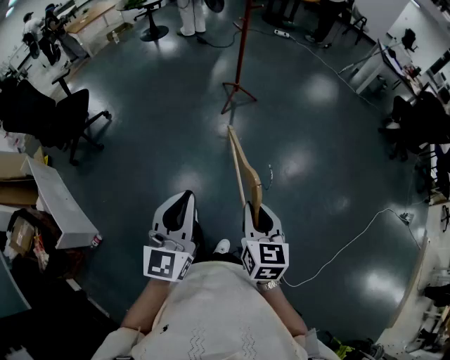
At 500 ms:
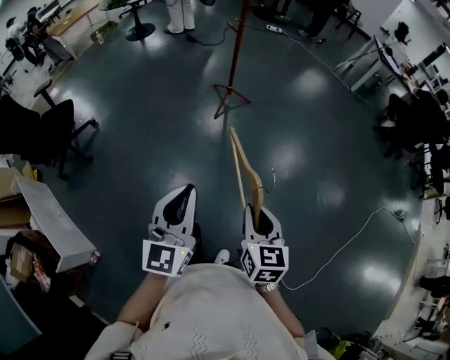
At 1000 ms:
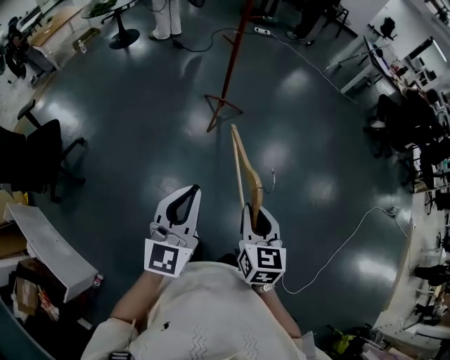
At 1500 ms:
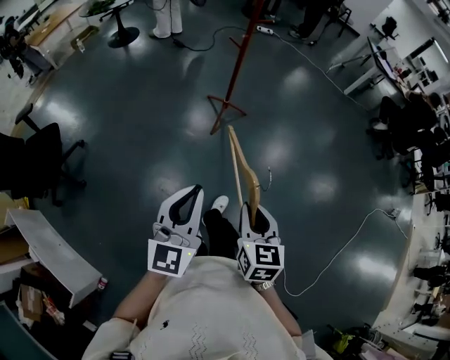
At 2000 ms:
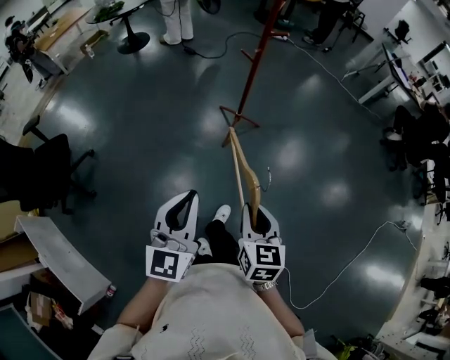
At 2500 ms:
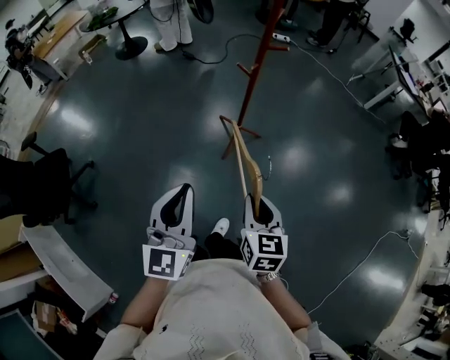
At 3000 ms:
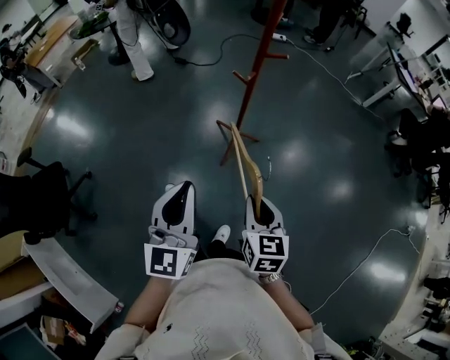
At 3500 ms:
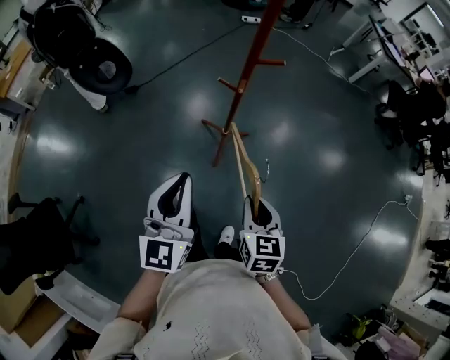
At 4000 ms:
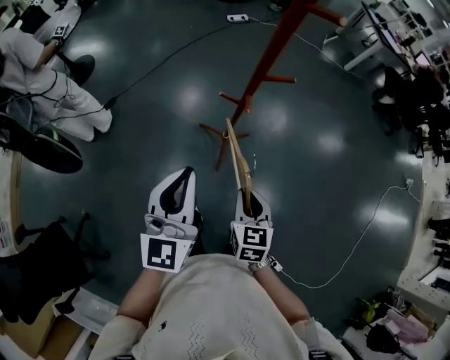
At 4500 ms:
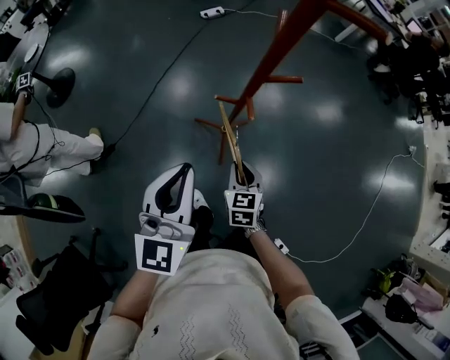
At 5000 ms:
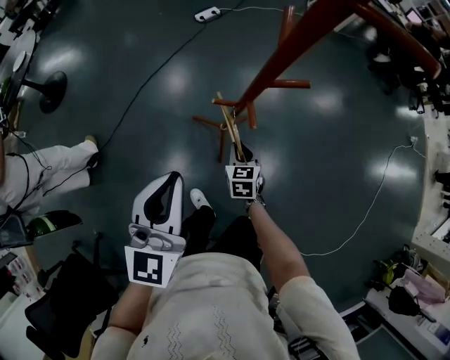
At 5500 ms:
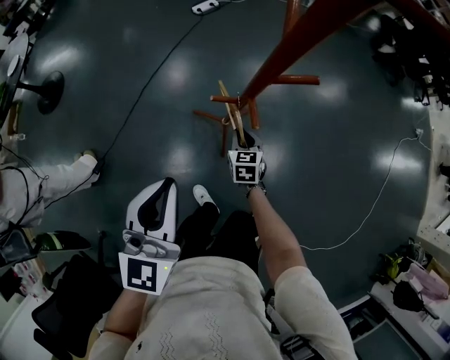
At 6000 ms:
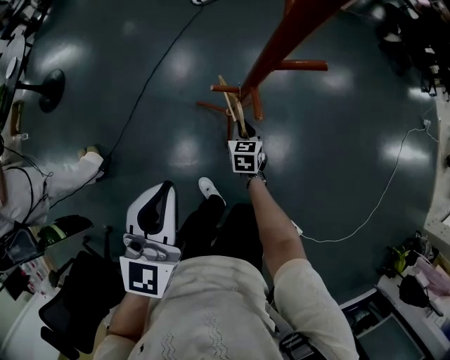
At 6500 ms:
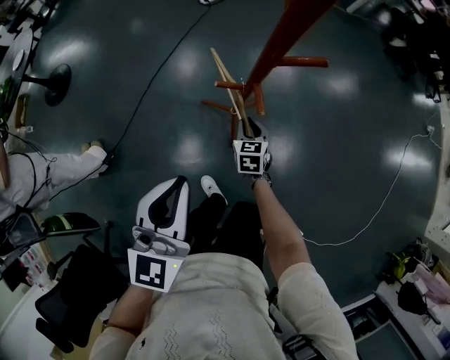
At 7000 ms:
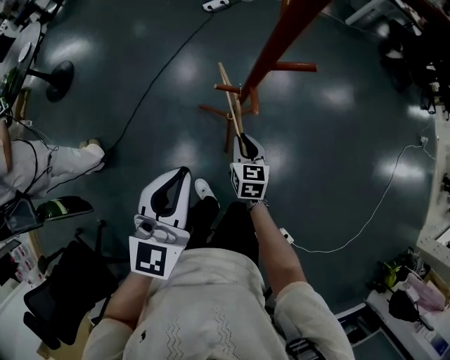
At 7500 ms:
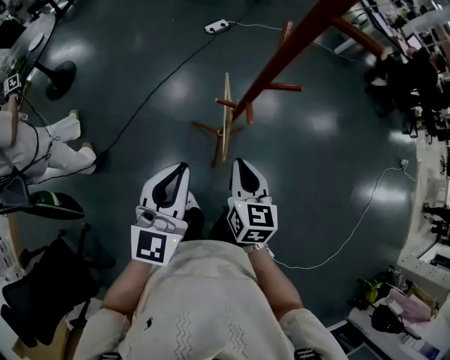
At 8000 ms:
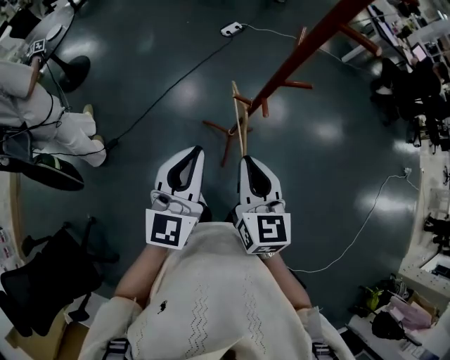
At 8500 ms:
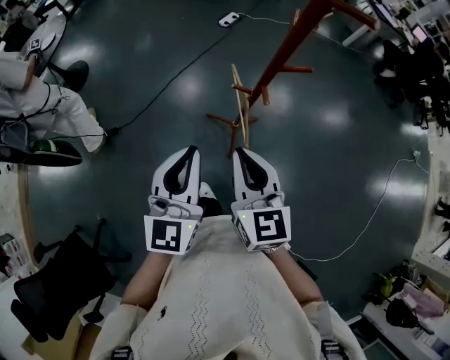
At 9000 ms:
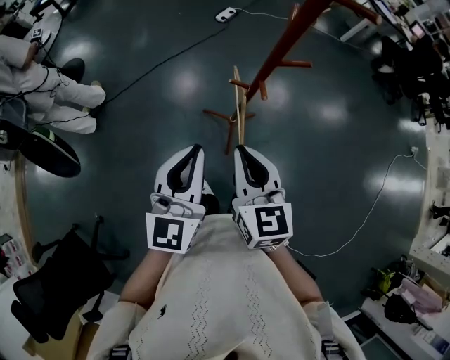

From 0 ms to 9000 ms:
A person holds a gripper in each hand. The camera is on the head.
From 0 ms to 2000 ms: Both grippers are carried forward and to the left, roughly 50 cm.
From 2000 ms to 4500 ms: The two grippers travel together, approximately 60 cm. The right gripper changes its angle by some 20 degrees; the left gripper changes its angle by about 20 degrees.
From 4500 ms to 7000 ms: The left gripper heads downward, covering approximately 5 cm. The right gripper shifts about 10 cm forward and downward.
From 7000 ms to 9000 ms: The right gripper is displaced upward and backward by roughly 30 cm, while the left gripper travels upward and backward by some 10 cm.

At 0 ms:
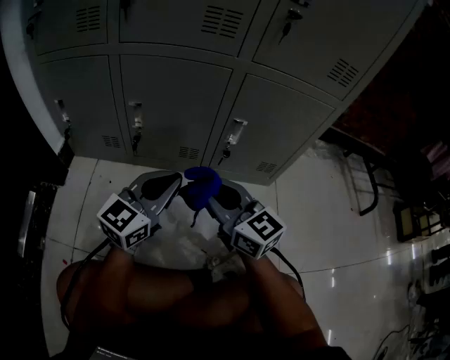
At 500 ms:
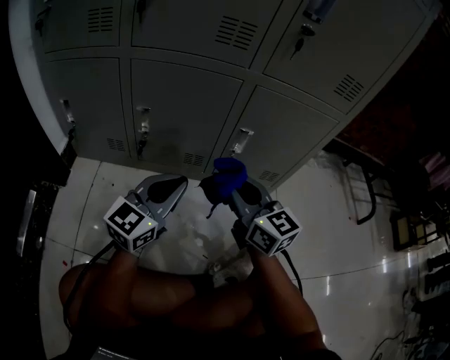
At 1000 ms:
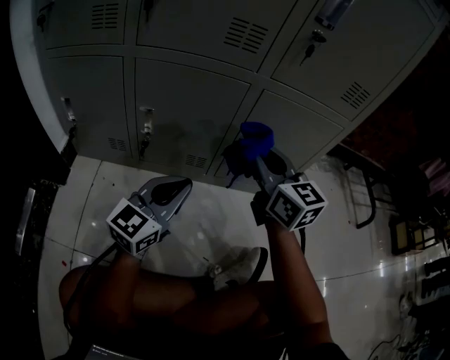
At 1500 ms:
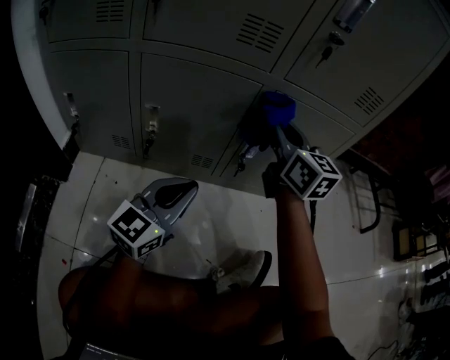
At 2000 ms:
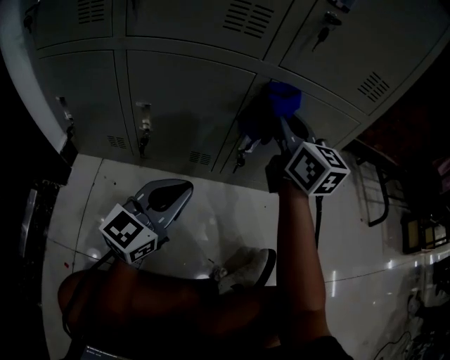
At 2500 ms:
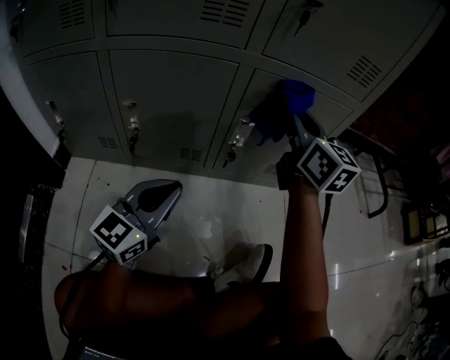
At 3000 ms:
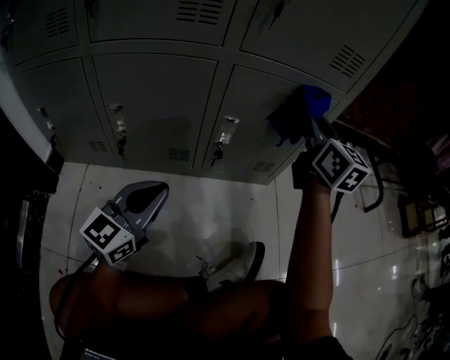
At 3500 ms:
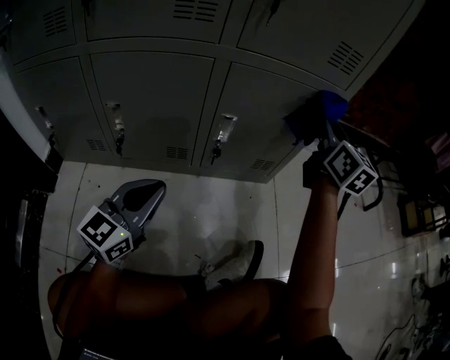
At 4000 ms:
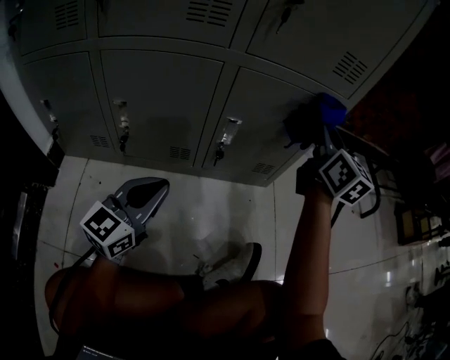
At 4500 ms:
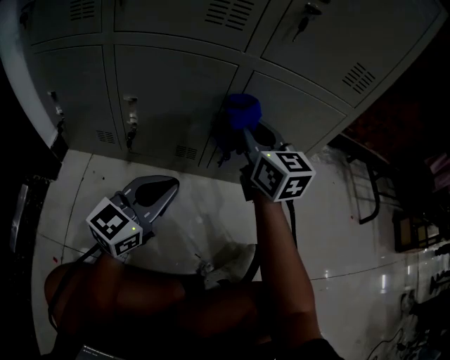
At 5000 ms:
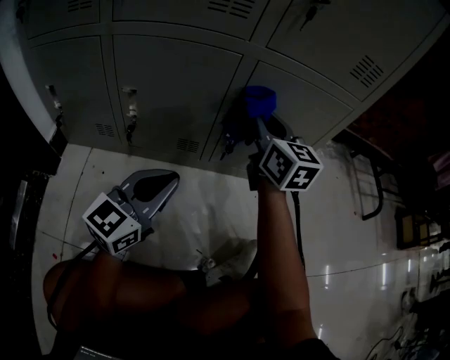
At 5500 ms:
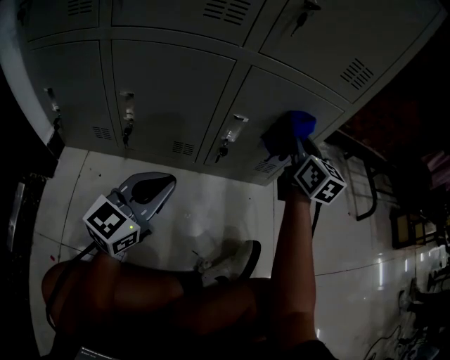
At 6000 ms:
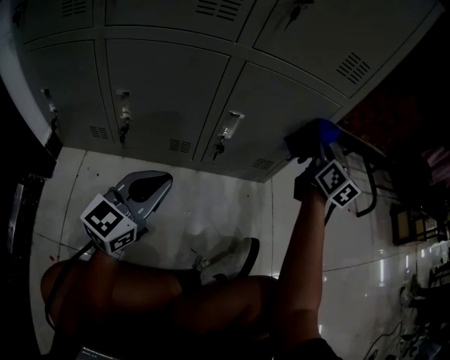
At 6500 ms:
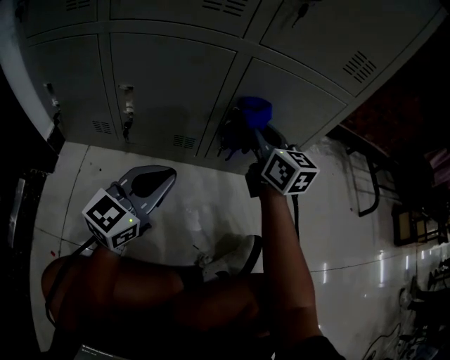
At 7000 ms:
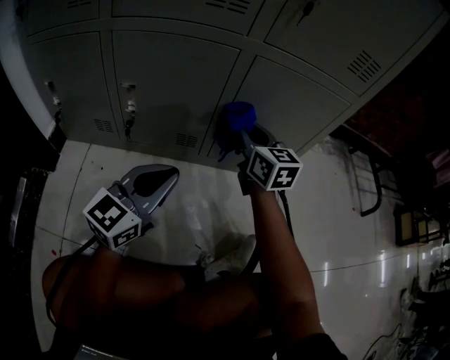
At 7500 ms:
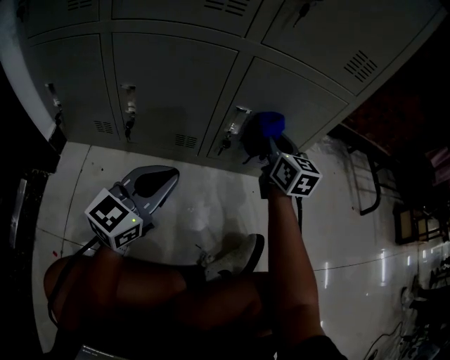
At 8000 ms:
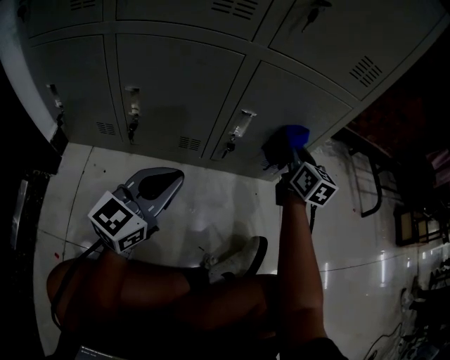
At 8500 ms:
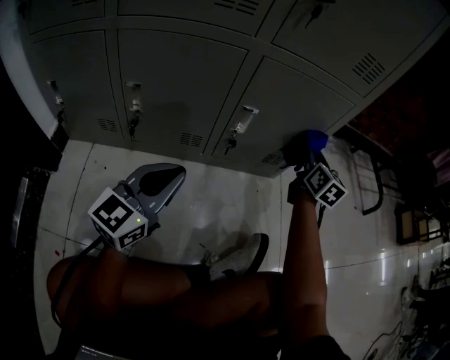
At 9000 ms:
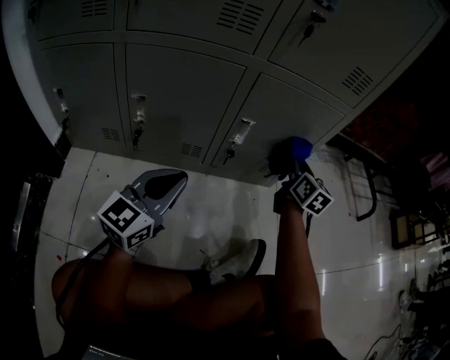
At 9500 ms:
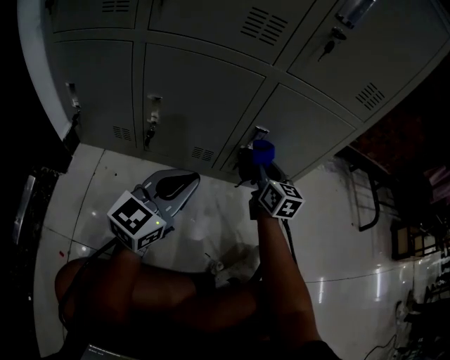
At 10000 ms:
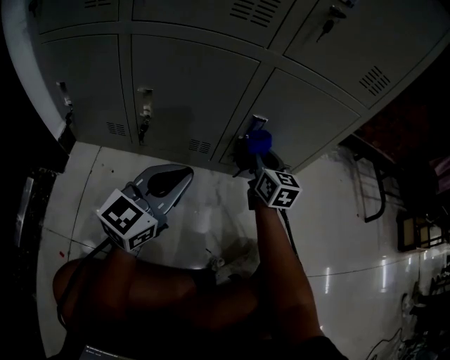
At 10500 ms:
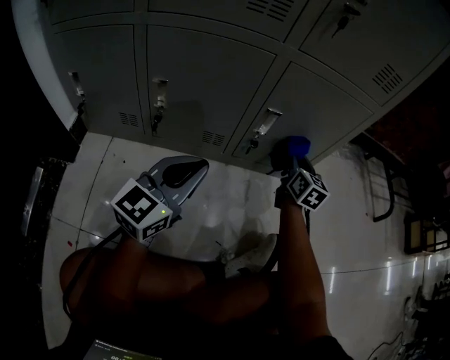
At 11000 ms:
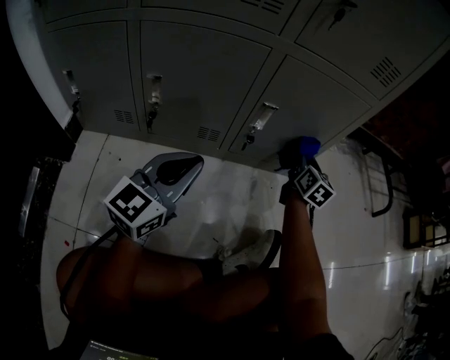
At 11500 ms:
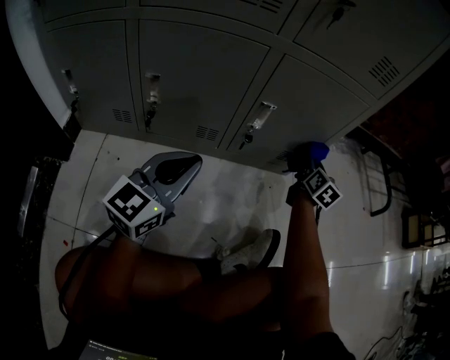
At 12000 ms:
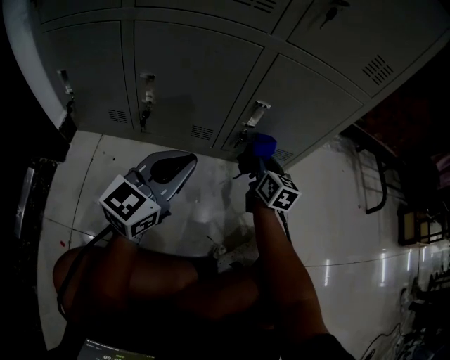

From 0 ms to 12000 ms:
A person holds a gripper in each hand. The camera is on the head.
From 0 ms to 2000 ms: The right gripper shifts some 25 cm forward, upward and to the right, and rotates approximately 20 degrees.
From 2000 ms to 4000 ms: The right gripper moves to the right, some 15 cm.
From 4000 ms to 6000 ms: The right gripper goes approximately 10 cm downward, and travels to the left and back again, some 20 cm each way.
From 6000 ms to 8000 ms: The right gripper heads downward, covering about 5 cm, and moves approximately 25 cm to the left and comes back.
From 8000 ms to 10000 ms: The right gripper goes some 15 cm to the left and downward.
From 10000 ms to 12000 ms: The right gripper travels downward by approximately 5 cm, and reaches approximately 20 cm to the right, then returns.

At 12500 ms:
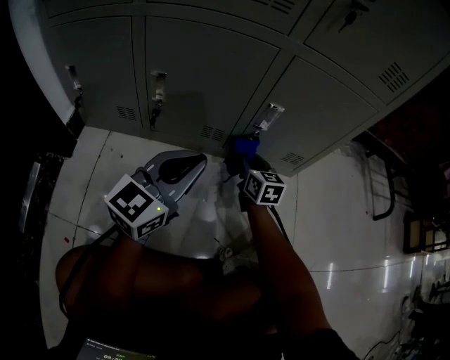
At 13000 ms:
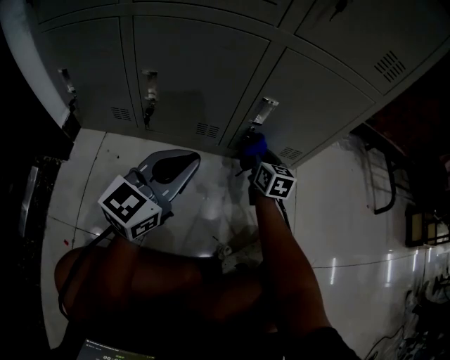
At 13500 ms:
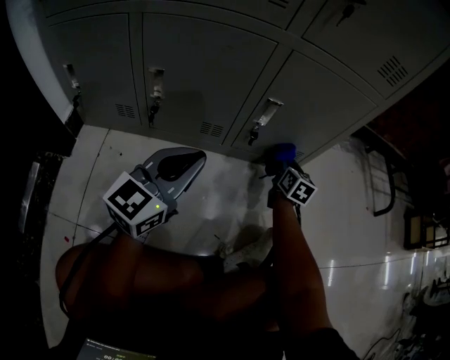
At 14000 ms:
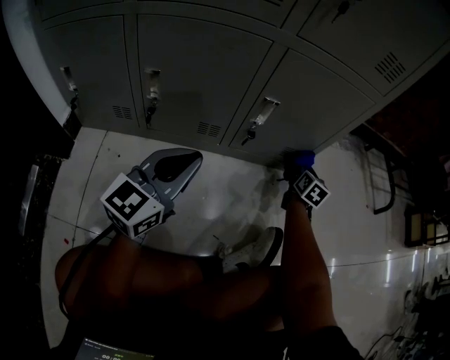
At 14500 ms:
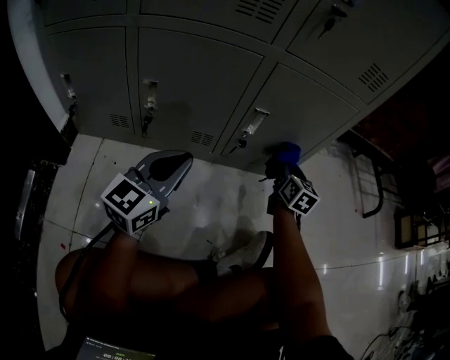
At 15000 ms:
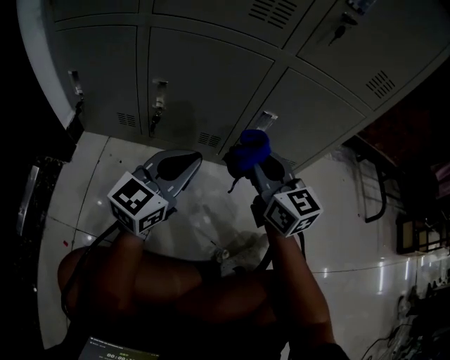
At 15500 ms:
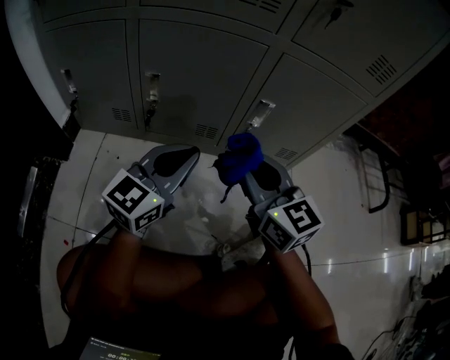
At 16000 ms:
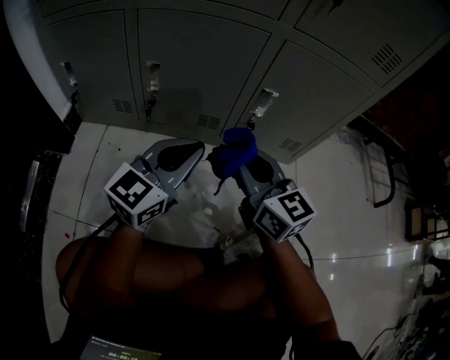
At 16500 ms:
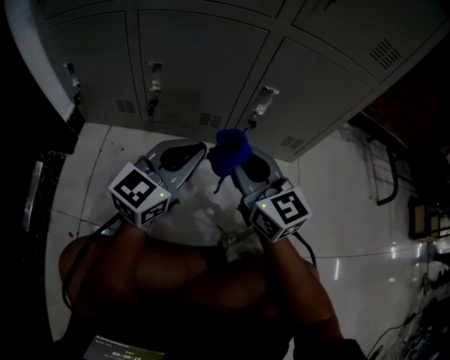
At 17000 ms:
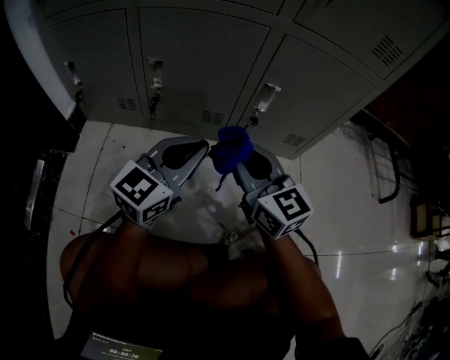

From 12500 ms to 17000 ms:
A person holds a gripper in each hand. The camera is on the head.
From 12500 ms to 14500 ms: The right gripper heads to the right and upward, covering some 20 cm, and swivels some 20 degrees.
From 14500 ms to 17000 ms: The right gripper goes some 30 cm to the left, backward and upward, and swivels about 40 degrees.

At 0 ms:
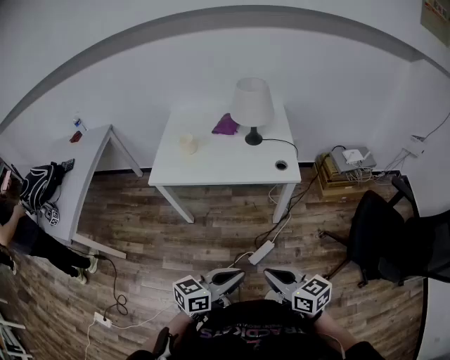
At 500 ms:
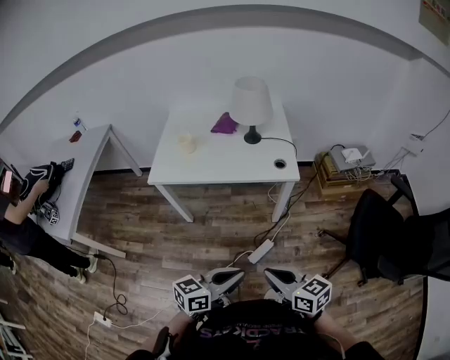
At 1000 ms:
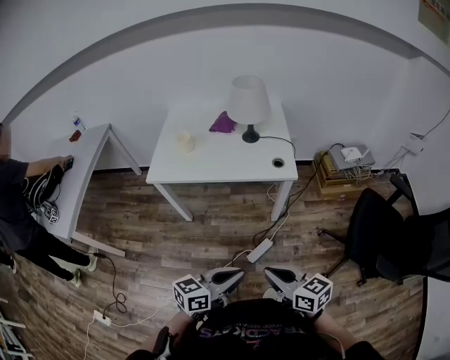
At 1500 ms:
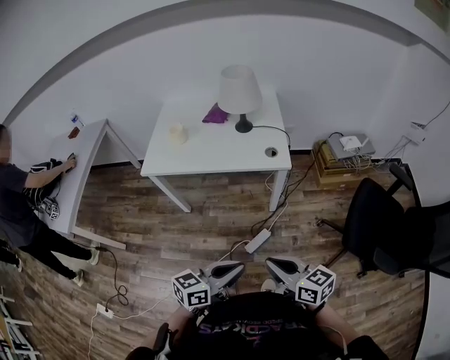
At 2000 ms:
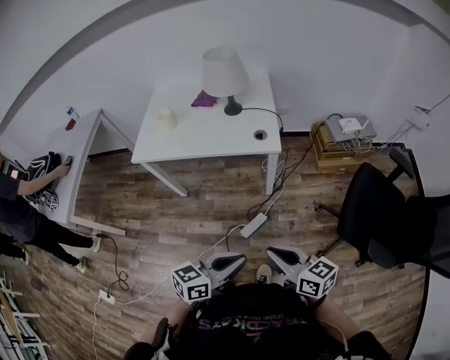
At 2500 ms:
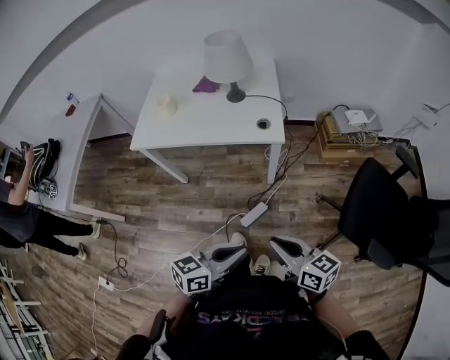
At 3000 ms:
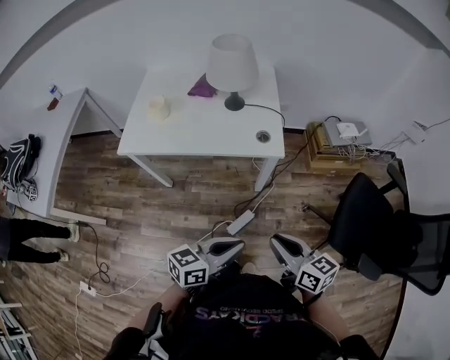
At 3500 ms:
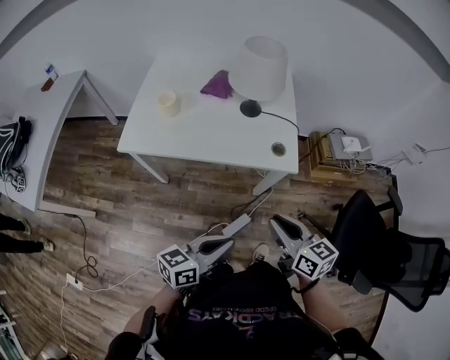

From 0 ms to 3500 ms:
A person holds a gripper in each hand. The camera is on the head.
From 0 ms to 2000 ms: Both grippers move to the right, some 10 cm.
From 2000 ms to 3500 ms: The right gripper travels forward by approximately 20 cm; the left gripper travels forward and to the left by roughly 20 cm.
